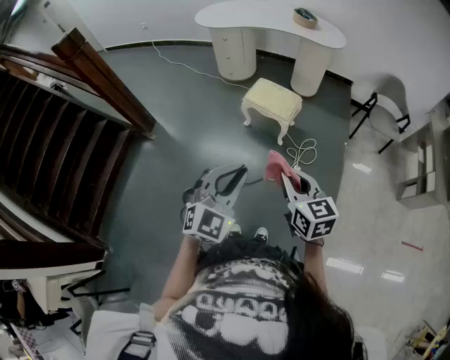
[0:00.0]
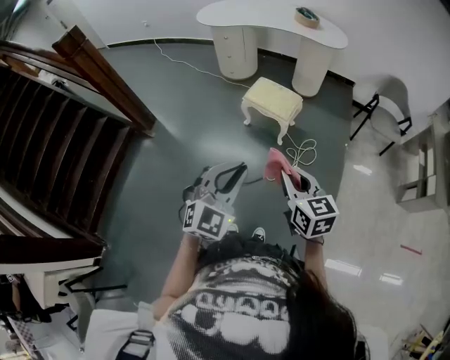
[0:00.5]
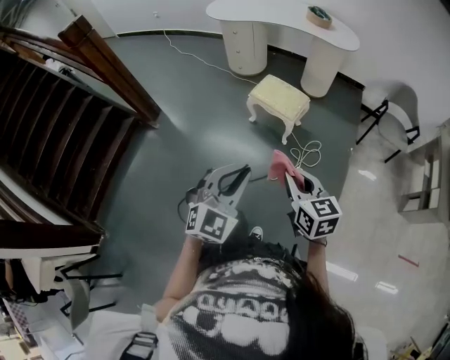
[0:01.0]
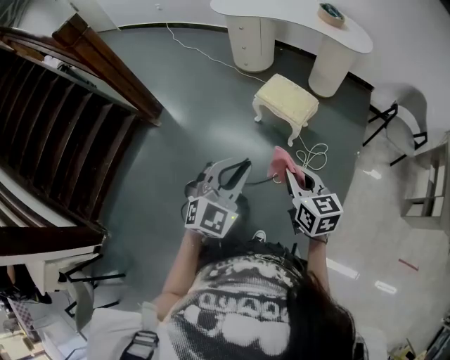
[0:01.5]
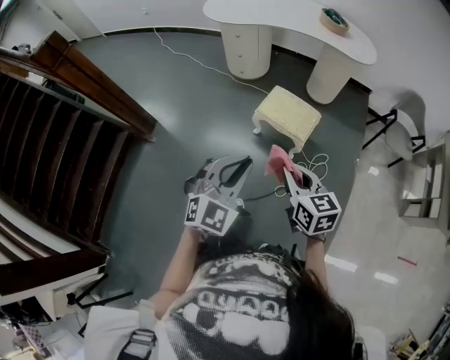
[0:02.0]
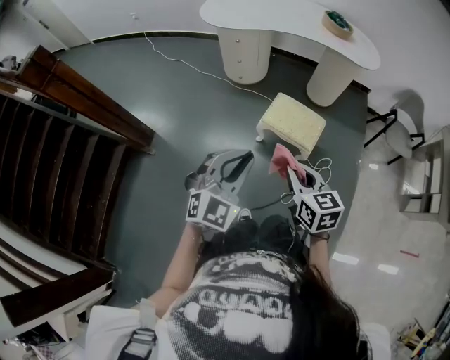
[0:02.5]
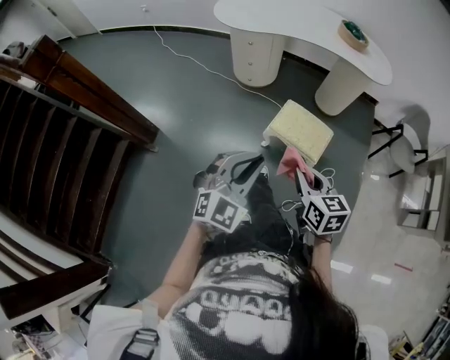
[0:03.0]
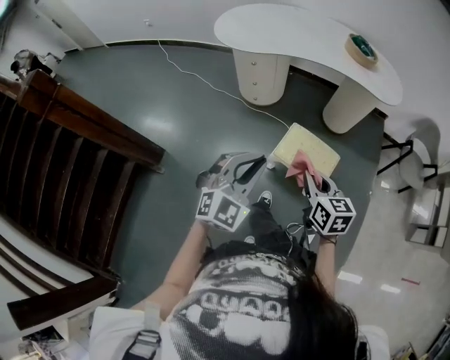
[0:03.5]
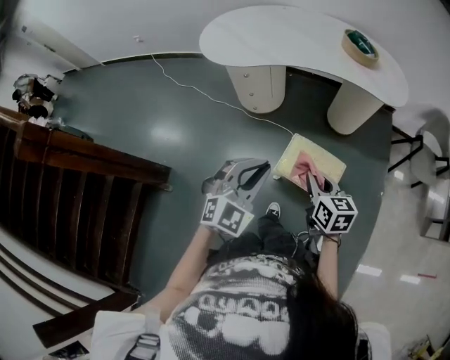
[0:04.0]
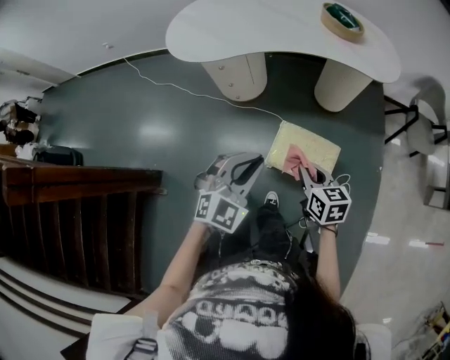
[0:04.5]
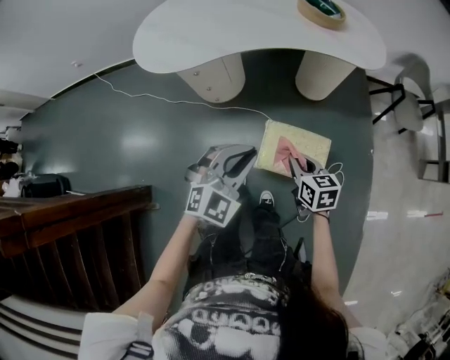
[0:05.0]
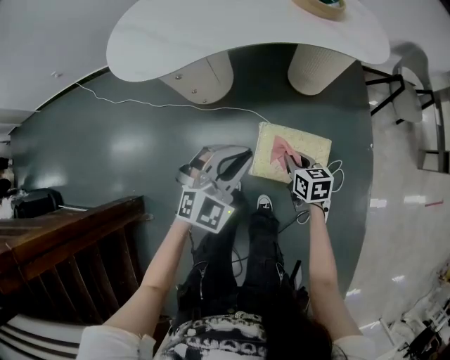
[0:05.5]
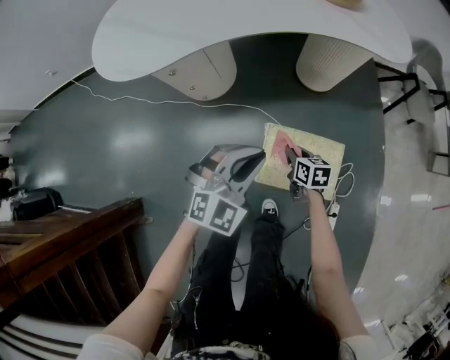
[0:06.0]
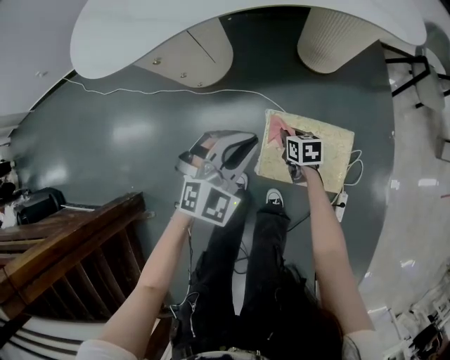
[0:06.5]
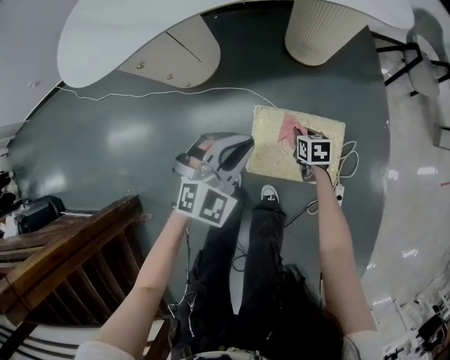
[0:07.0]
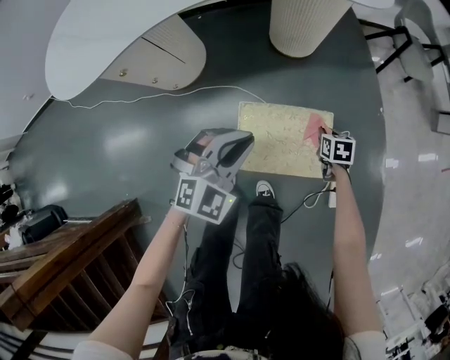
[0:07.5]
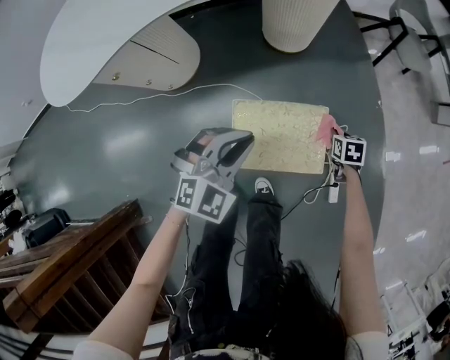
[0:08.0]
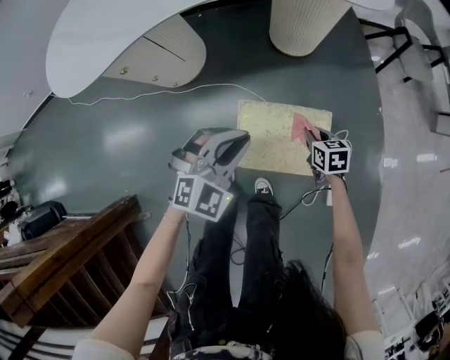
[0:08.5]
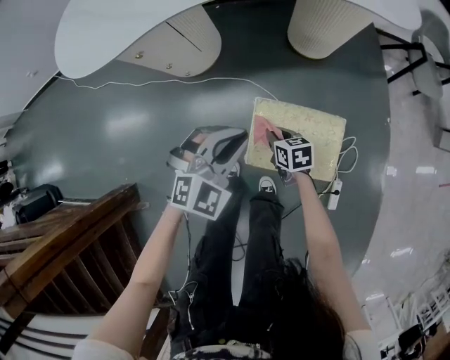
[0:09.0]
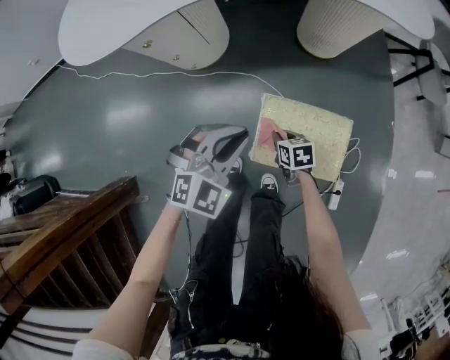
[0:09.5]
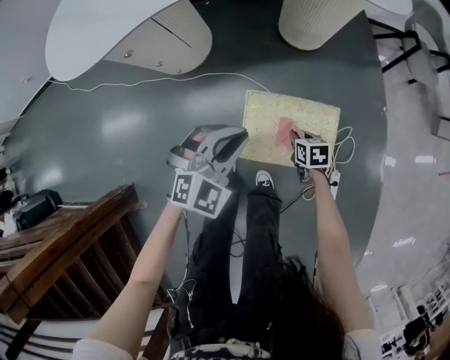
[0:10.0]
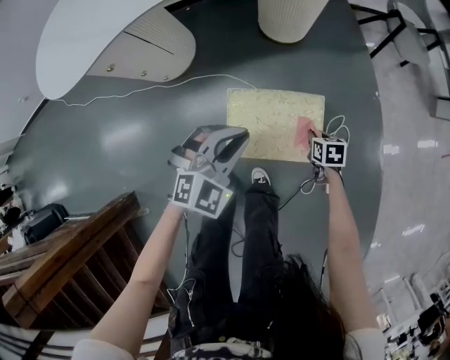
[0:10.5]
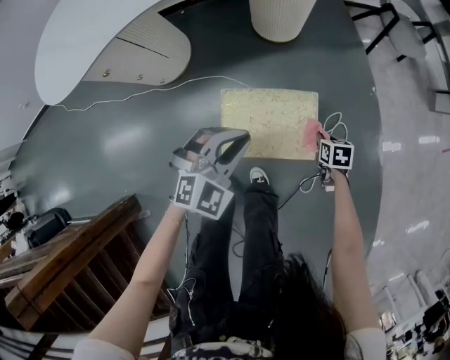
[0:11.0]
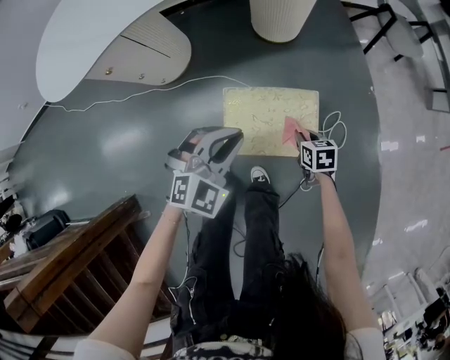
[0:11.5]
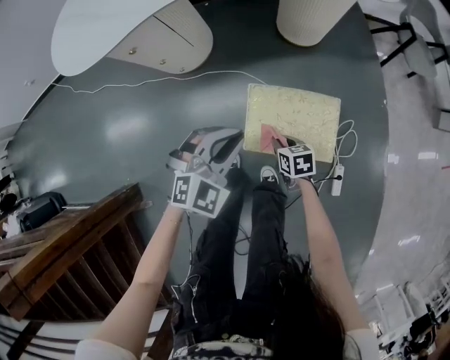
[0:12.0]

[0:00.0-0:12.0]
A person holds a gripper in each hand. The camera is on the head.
0:00.0 to 0:02.0: Both grippers move forward, approximately 25 cm.
0:02.0 to 0:04.0: Both grippers move forward, about 35 cm.
0:04.0 to 0:06.0: Both grippers move downward and forward, roughly 35 cm. The right gripper swivels about 30 degrees. The left gripper turns by about 20 degrees.
0:06.0 to 0:08.0: The left gripper heads to the right and downward, covering about 15 cm, while the right gripper travels to the right by approximately 30 cm, and rotates some 30 degrees.
0:10.0 to 0:12.0: The left gripper moves about 10 cm to the right and comes back, while the right gripper moves backward, some 5 cm, and travels to the right and back again, approximately 20 cm each way.

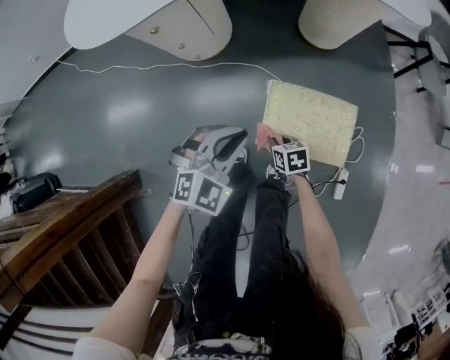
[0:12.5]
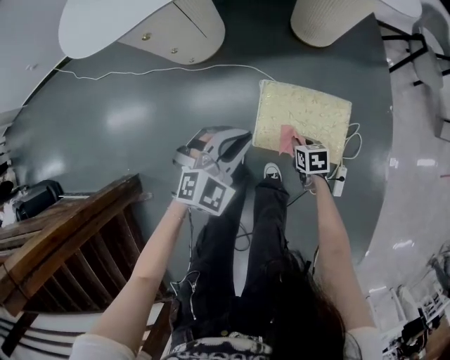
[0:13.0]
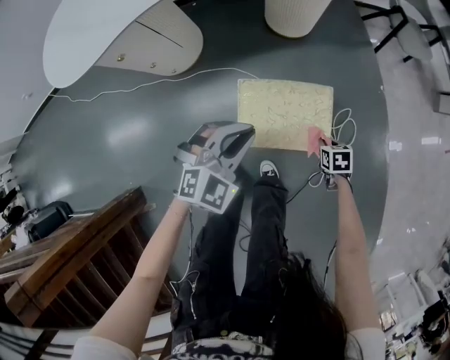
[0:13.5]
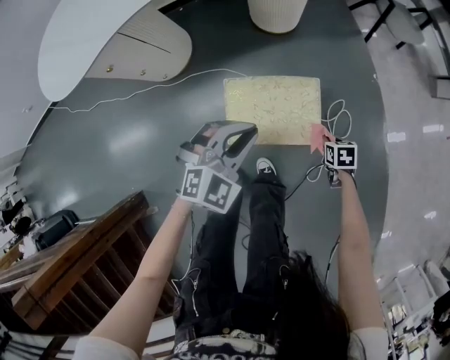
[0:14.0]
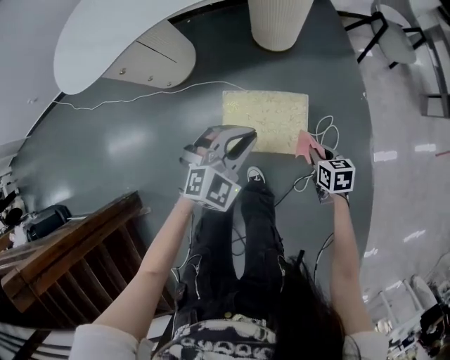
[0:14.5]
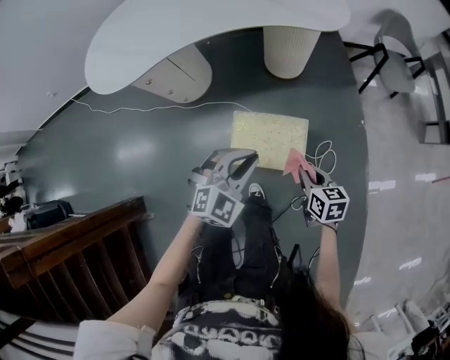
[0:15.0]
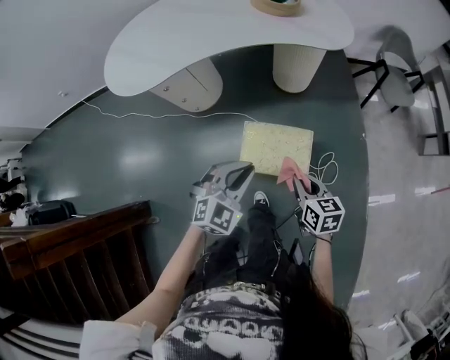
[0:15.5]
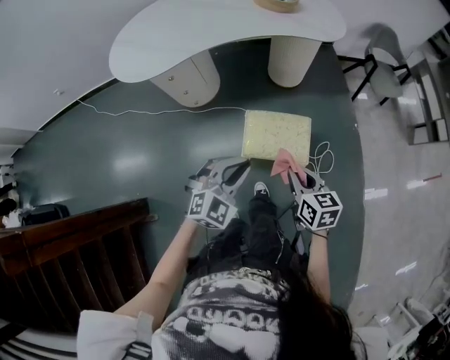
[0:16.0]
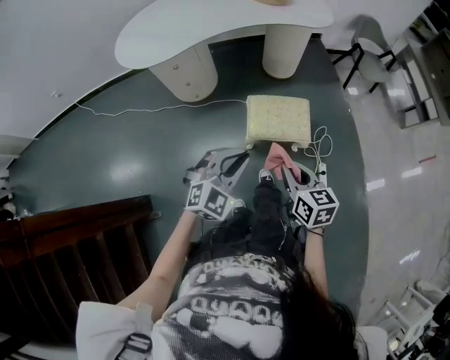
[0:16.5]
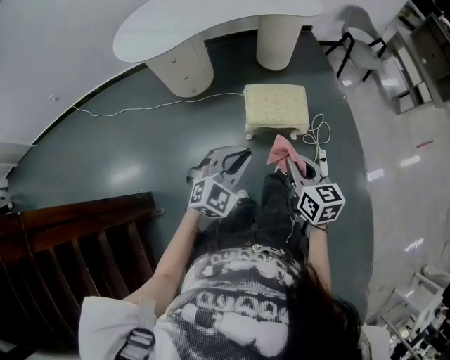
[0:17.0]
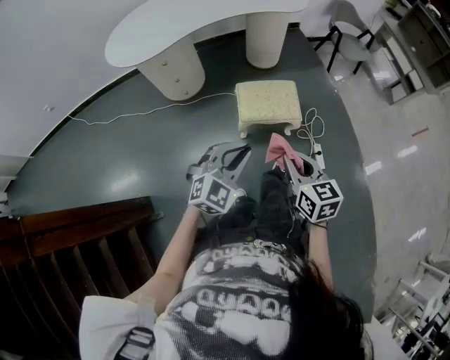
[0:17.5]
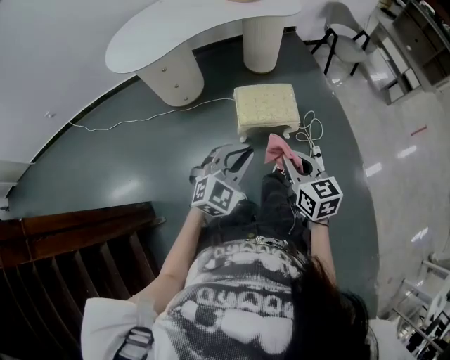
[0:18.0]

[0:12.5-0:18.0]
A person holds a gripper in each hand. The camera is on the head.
0:12.5 to 0:14.5: The right gripper moves to the right and upward, roughly 35 cm; the left gripper shifts roughly 20 cm to the right.
0:14.5 to 0:16.0: The right gripper travels upward and to the left by roughly 30 cm, and swivels about 20 degrees, while the left gripper heads upward, backward and to the left, covering approximately 20 cm.
0:16.0 to 0:18.0: The grippers both shift backward by roughly 20 cm.

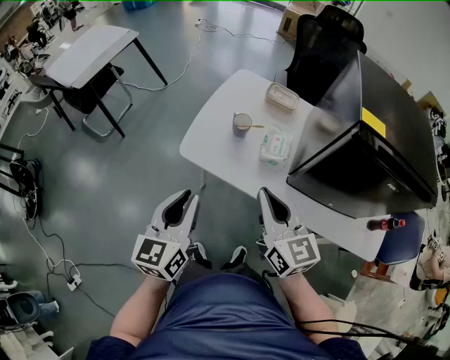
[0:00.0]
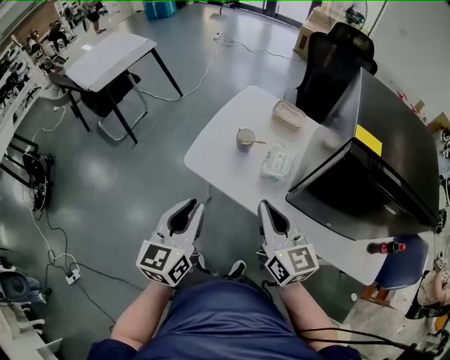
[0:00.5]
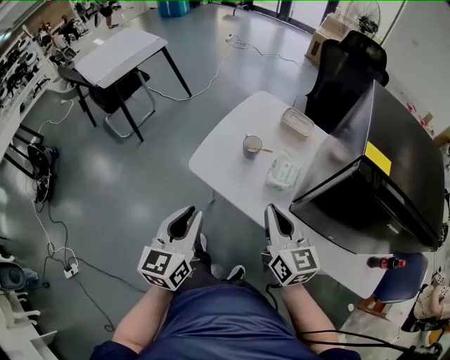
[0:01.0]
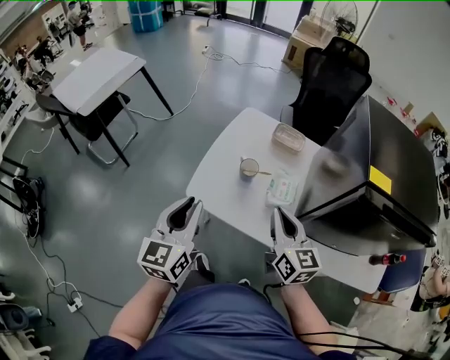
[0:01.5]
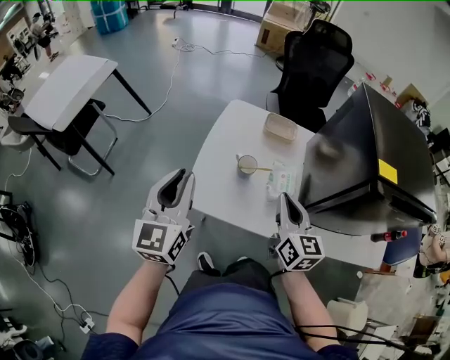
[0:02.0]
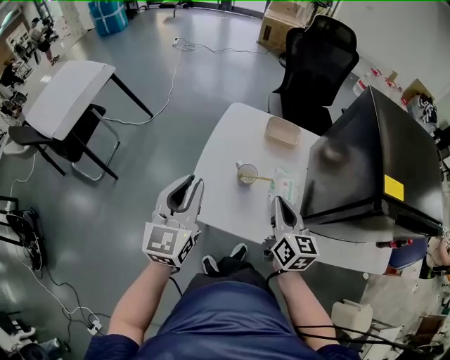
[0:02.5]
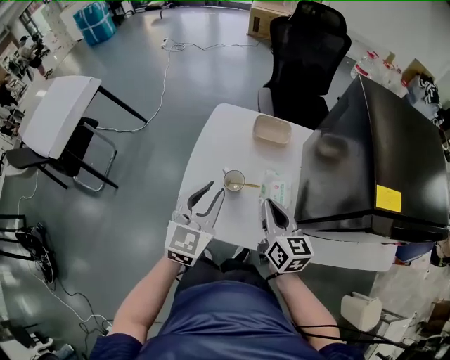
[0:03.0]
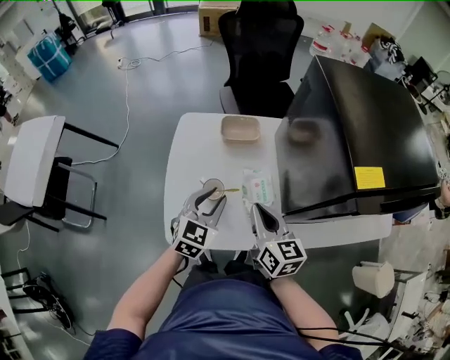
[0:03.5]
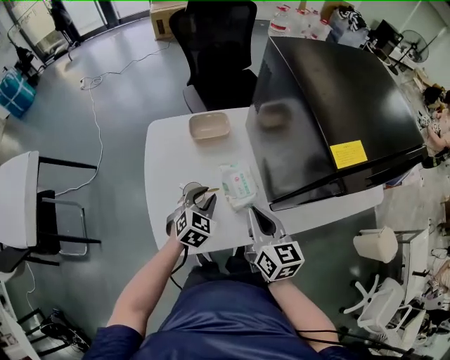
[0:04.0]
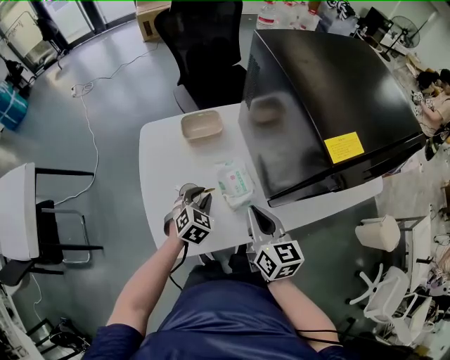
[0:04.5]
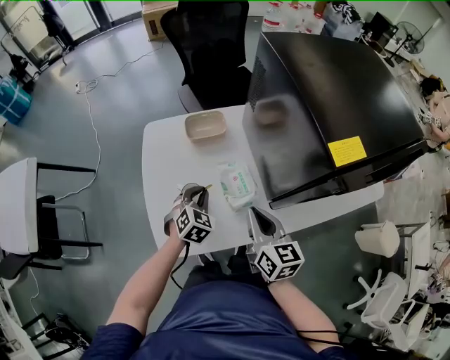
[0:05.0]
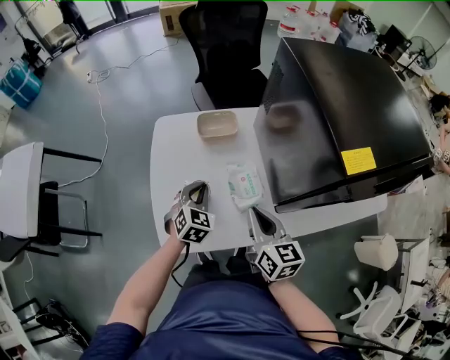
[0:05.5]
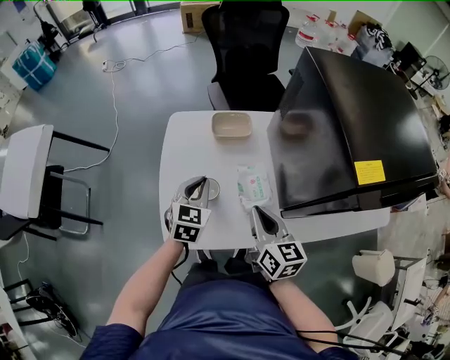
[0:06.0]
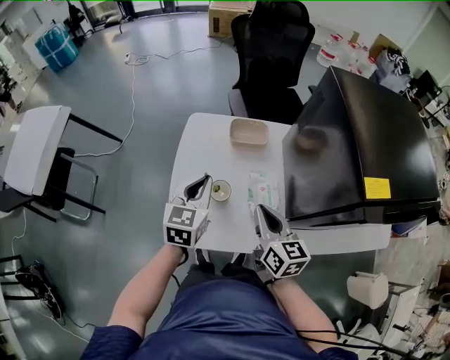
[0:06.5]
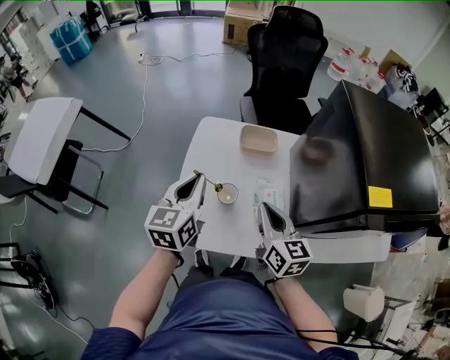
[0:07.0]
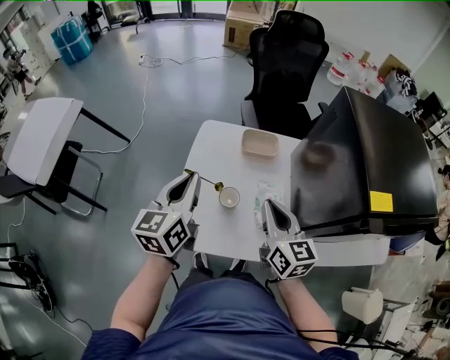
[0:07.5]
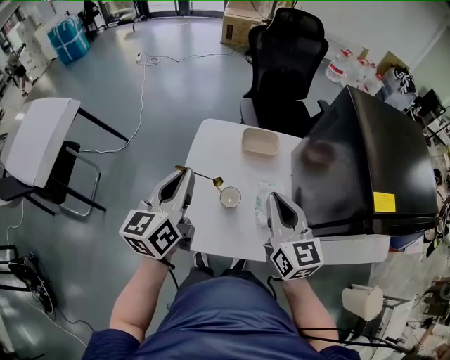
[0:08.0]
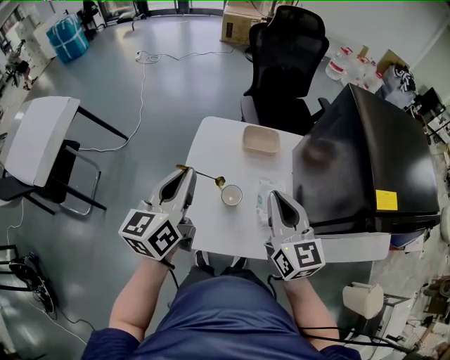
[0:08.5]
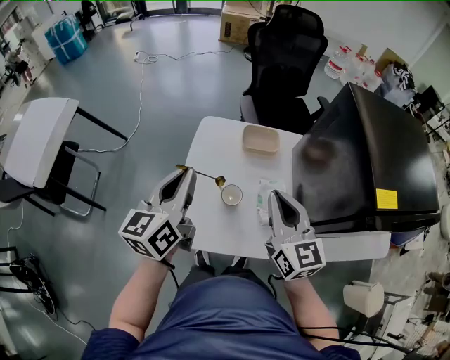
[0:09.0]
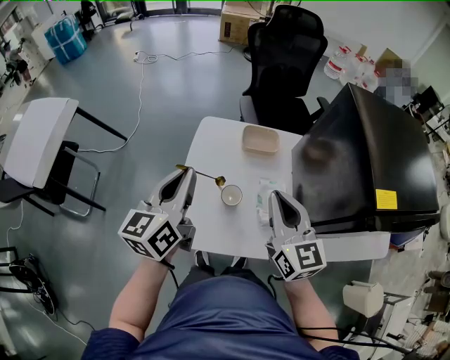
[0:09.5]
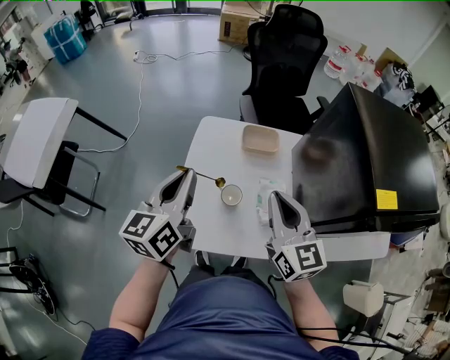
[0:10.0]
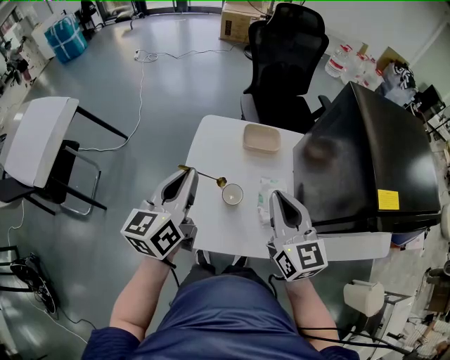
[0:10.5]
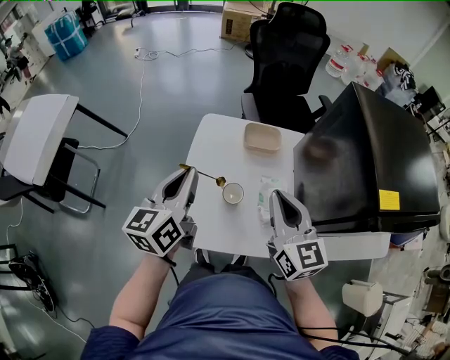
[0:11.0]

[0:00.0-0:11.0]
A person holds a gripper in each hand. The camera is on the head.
0:00.0 to 0:02.0: The left gripper goes about 20 cm forward. Meanwhile the right gripper moves forward, roughly 15 cm, and rotates about 20 degrees.
0:02.0 to 0:03.5: The right gripper moves forward and downward, approximately 10 cm. The left gripper moves to the right, downward and forward, some 30 cm, and turns by about 50 degrees.
0:03.5 to 0:05.5: The left gripper is displaced downward and forward by approximately 10 cm.
0:05.5 to 0:07.5: The left gripper moves upward and to the left, some 25 cm, and rotates around the line of its fingers by about 50 degrees, counterclockwise from behind. Meanwhile the right gripper moves upward and to the left, about 10 cm.
0:07.5 to 0:09.0: The right gripper is displaced upward by roughly 5 cm.
0:09.0 to 0:11.0: There are only small adjustments of the grippers.
